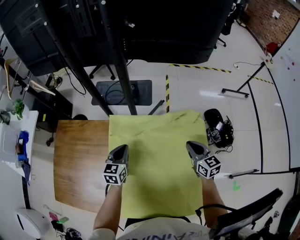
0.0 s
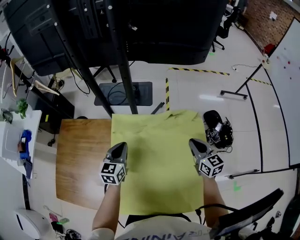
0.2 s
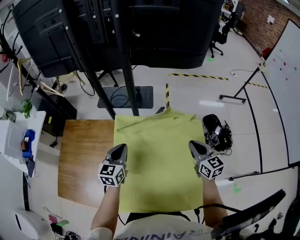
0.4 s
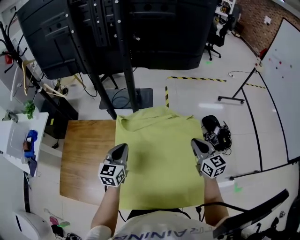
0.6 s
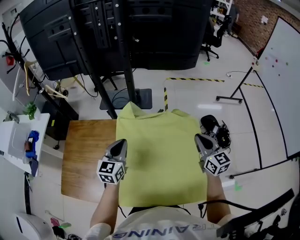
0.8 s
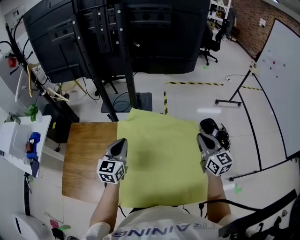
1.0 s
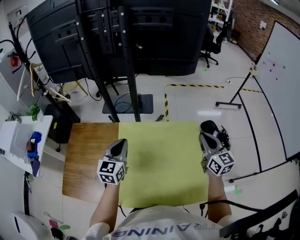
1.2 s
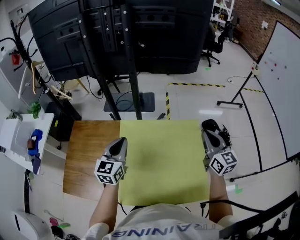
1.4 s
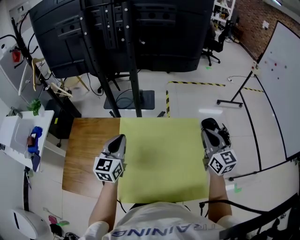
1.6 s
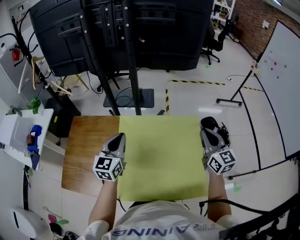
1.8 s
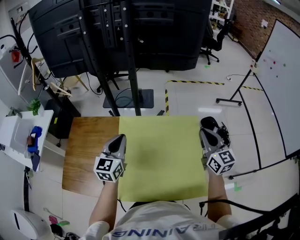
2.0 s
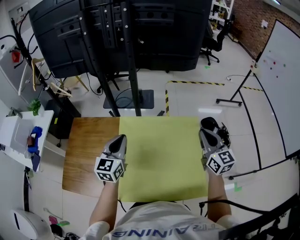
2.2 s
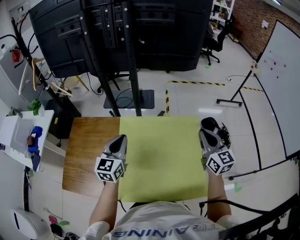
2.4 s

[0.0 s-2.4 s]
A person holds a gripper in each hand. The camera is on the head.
0.0 to 1.2 s: Both grippers move upward and backward, about 20 cm. The right gripper turns by about 20 degrees.
1.2 to 2.4 s: There are only small adjustments of the grippers.

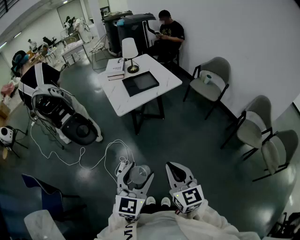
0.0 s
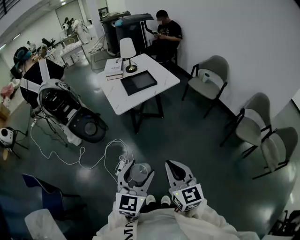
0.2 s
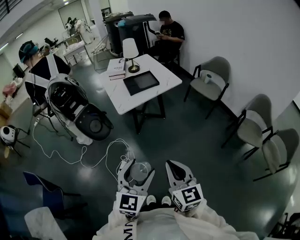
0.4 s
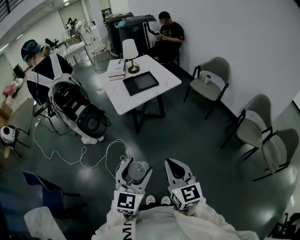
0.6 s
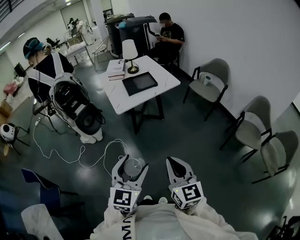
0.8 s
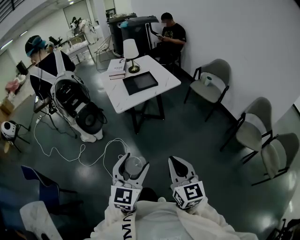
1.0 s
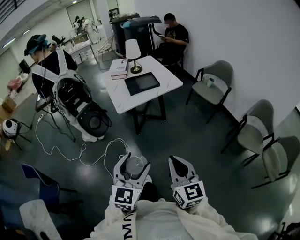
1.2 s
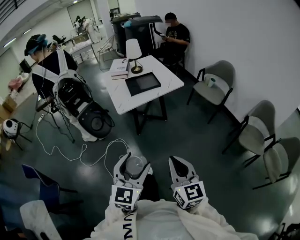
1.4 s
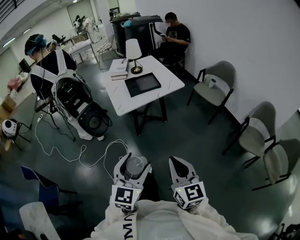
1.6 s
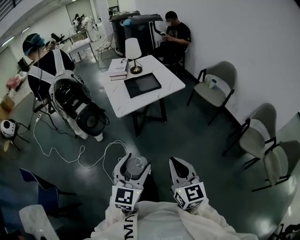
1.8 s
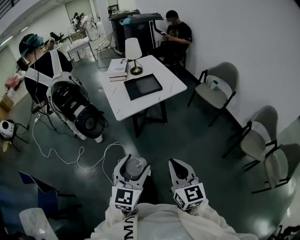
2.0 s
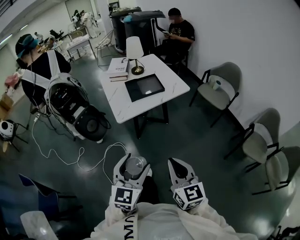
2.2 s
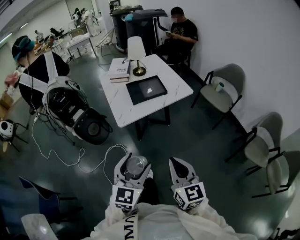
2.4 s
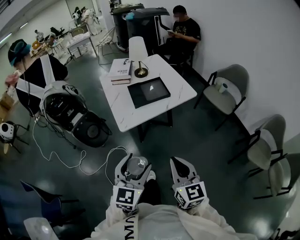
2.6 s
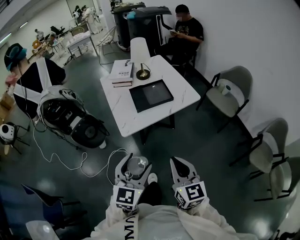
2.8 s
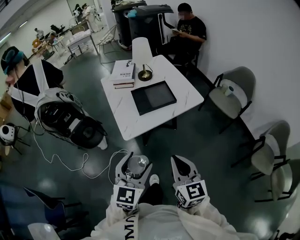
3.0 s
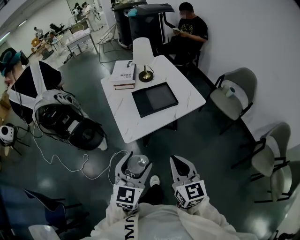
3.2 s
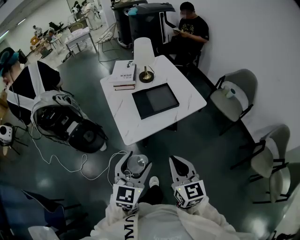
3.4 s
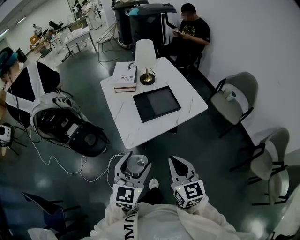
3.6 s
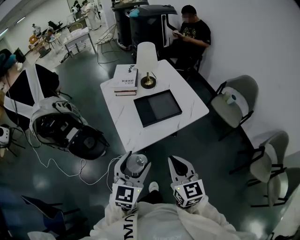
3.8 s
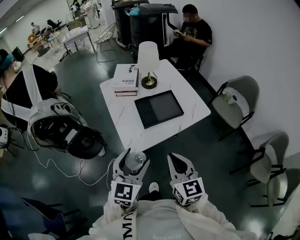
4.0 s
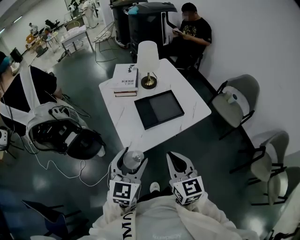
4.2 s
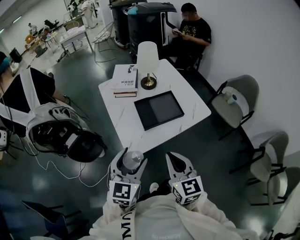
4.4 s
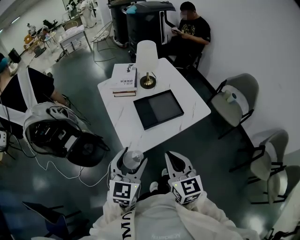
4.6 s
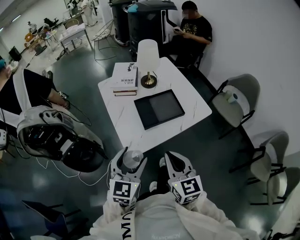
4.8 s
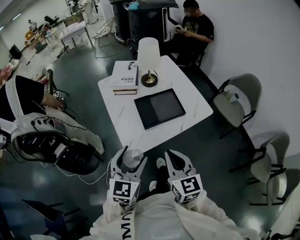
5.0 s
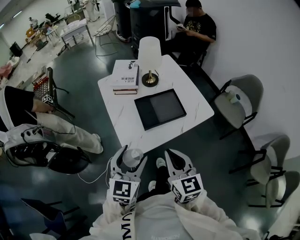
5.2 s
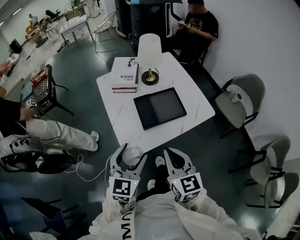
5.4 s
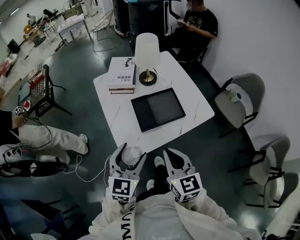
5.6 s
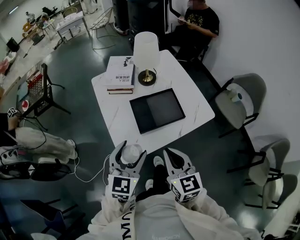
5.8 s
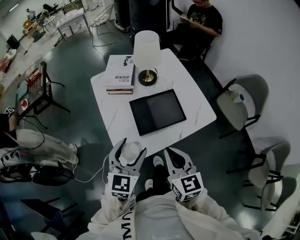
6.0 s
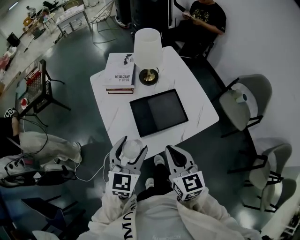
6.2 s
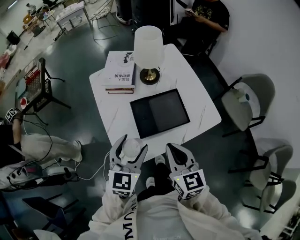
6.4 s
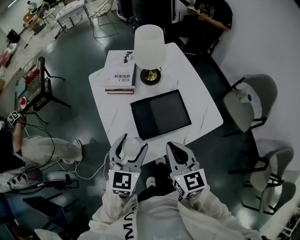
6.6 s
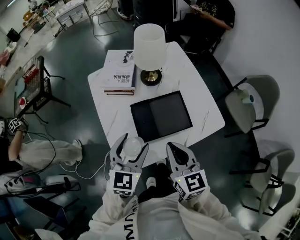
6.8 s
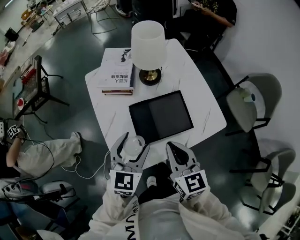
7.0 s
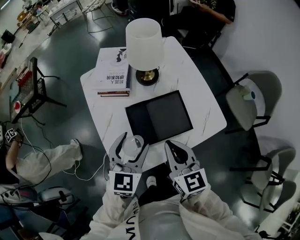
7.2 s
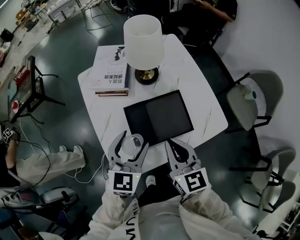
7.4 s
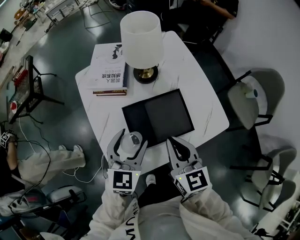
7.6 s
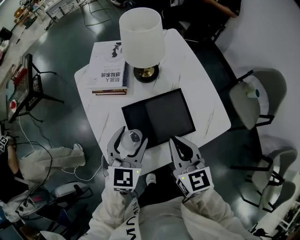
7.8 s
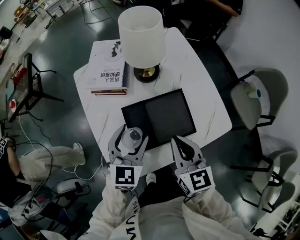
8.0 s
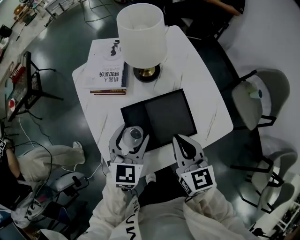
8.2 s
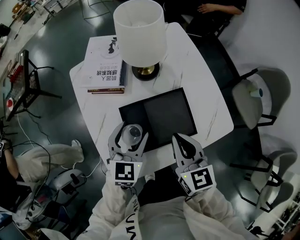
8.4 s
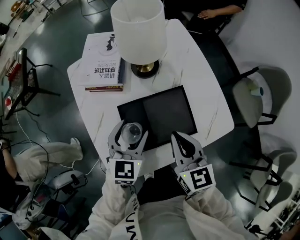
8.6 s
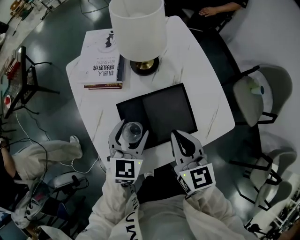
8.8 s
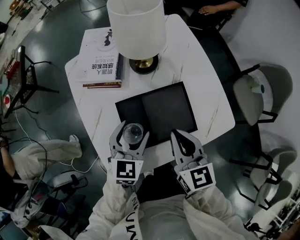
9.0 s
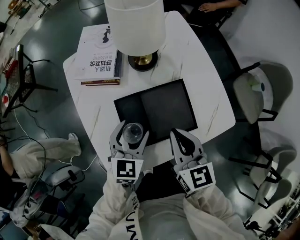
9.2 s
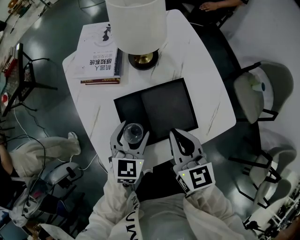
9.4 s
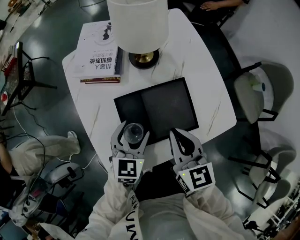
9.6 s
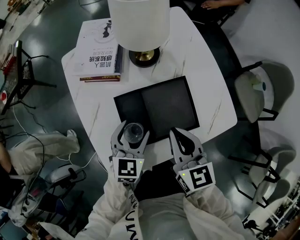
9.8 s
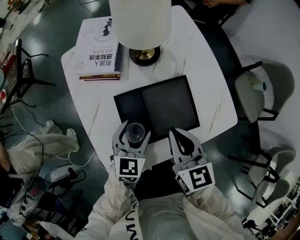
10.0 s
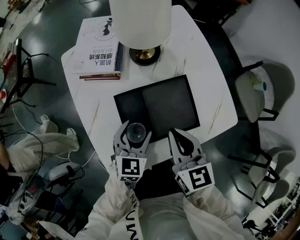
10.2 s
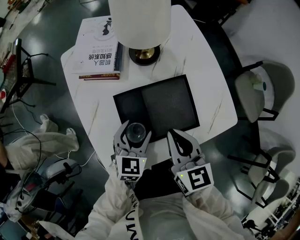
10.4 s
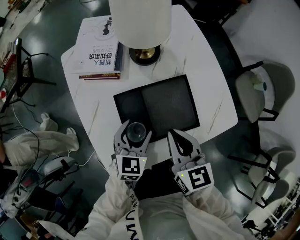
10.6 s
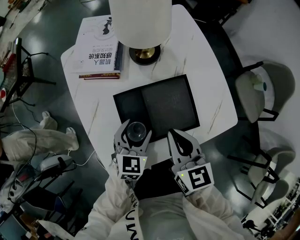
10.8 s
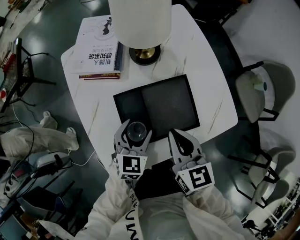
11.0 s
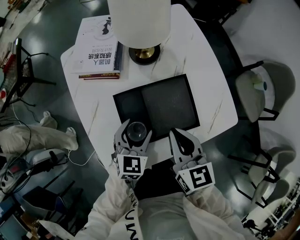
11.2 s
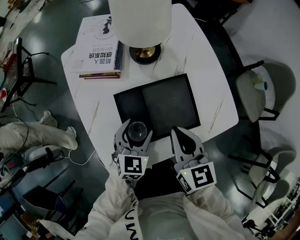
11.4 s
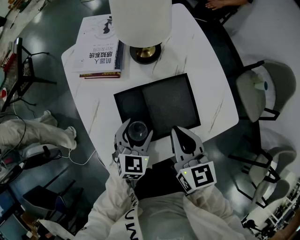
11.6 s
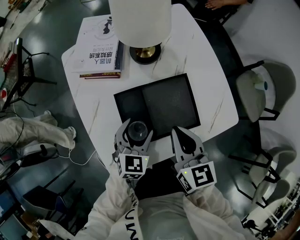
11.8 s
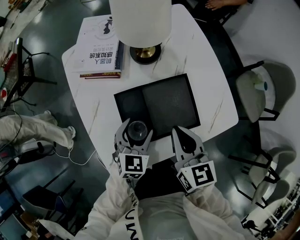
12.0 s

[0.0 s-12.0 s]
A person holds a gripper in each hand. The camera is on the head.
0.0 to 1.6 s: The right gripper heads to the right, covering roughly 5 cm.
1.6 to 3.0 s: The grippers both shift forward by approximately 30 cm.
3.0 to 4.4 s: Both grippers move forward and to the left, approximately 20 cm.
4.4 to 6.0 s: Both grippers travel together forward, some 10 cm.
6.0 to 7.6 s: The left gripper goes some 20 cm forward and downward; the right gripper moves forward, some 15 cm.
7.6 to 9.0 s: The right gripper ends up approximately 5 cm from where it was; the left gripper travels downward by some 10 cm.
9.0 to 10.4 s: The left gripper heads downward, covering roughly 5 cm.
10.4 to 12.0 s: The grippers make only small movements.

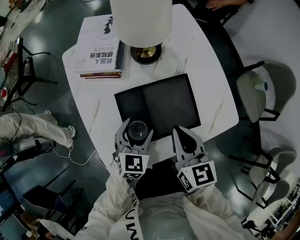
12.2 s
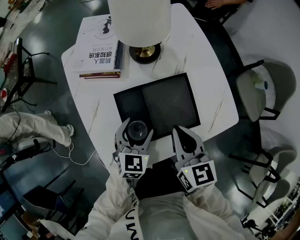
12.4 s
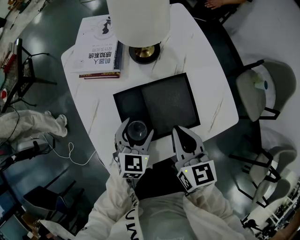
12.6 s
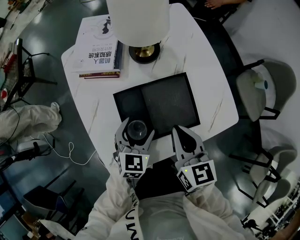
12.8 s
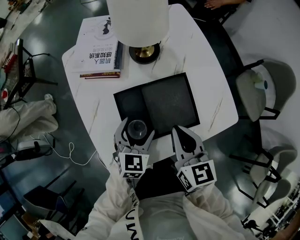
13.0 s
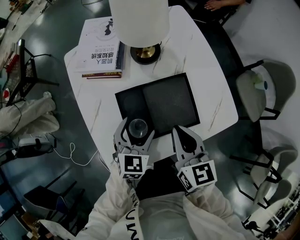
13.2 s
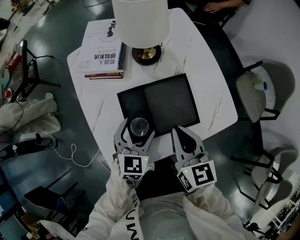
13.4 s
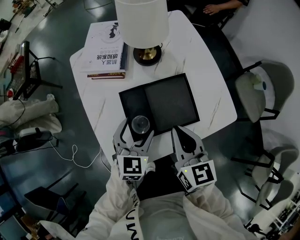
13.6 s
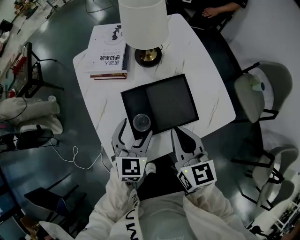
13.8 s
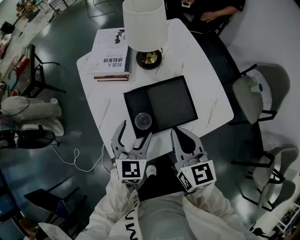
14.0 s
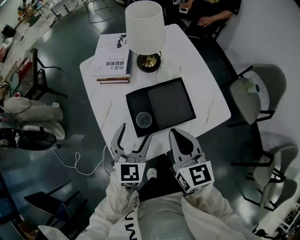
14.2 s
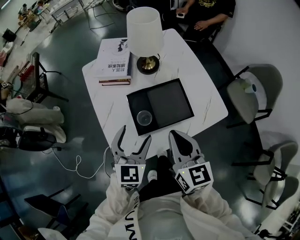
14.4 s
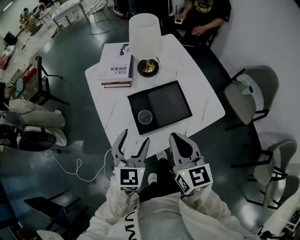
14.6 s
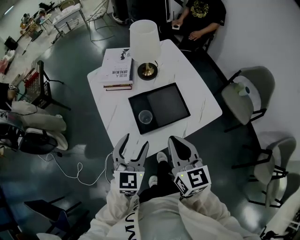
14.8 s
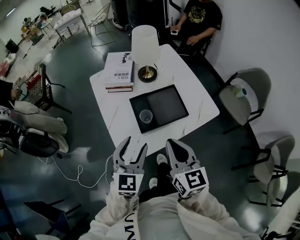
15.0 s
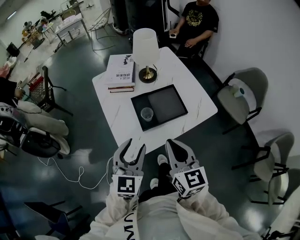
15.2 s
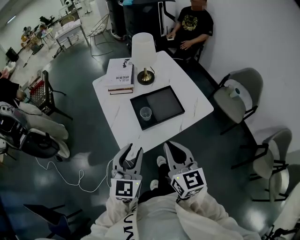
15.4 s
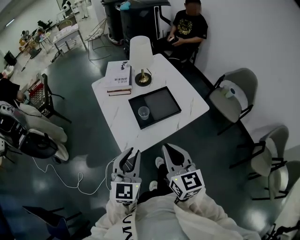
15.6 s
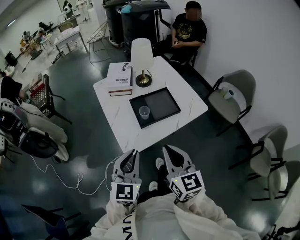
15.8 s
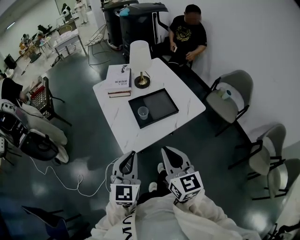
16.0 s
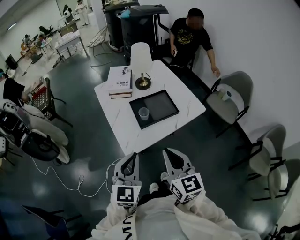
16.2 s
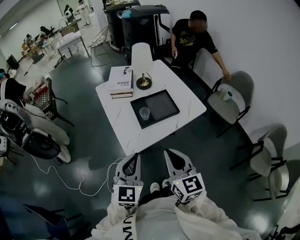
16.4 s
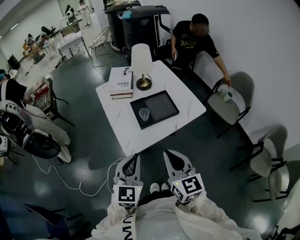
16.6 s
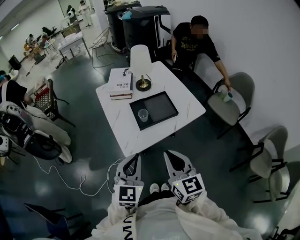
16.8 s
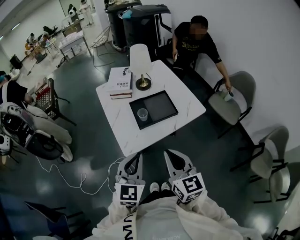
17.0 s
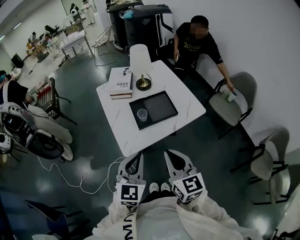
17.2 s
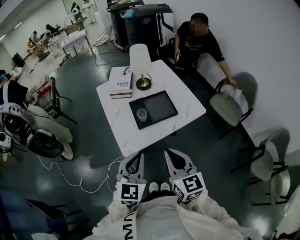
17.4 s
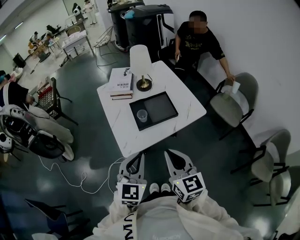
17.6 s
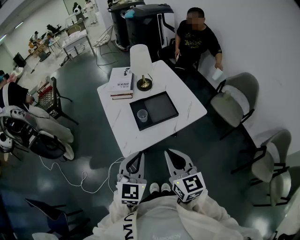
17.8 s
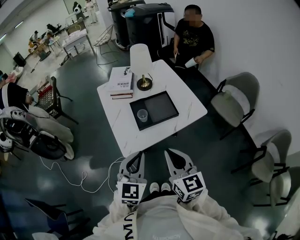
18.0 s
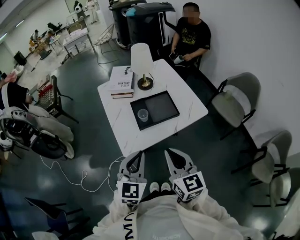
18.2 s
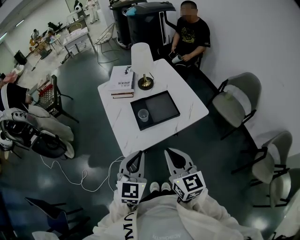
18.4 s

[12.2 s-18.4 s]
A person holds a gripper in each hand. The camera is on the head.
12.2 to 13.8 s: The right gripper shifts by roughly 5 cm; the left gripper heads upward, covering about 5 cm.
13.8 to 15.4 s: The grippers both shift backward and upward by approximately 25 cm. The left gripper swivels roughly 20 degrees, and closes.
15.4 to 16.8 s: Both grippers move backward, about 10 cm. The left gripper closes up.
16.8 to 18.4 s: There are only small adjustments of the grippers.

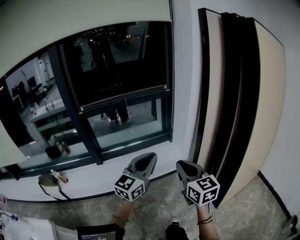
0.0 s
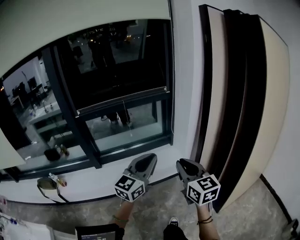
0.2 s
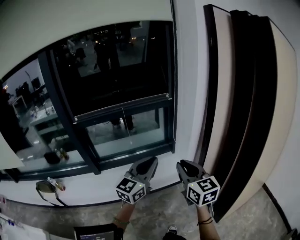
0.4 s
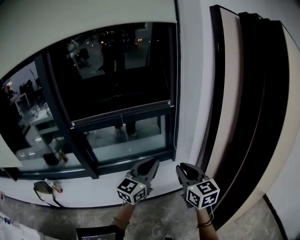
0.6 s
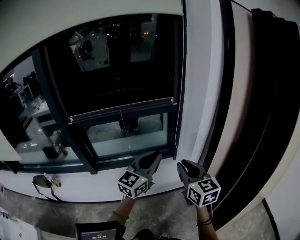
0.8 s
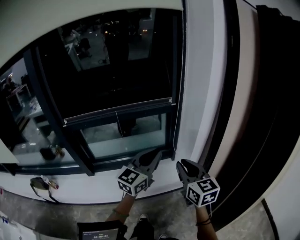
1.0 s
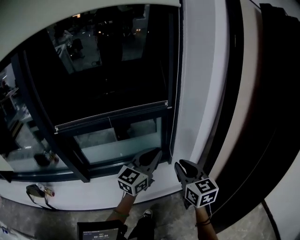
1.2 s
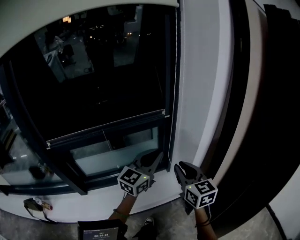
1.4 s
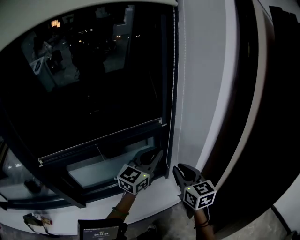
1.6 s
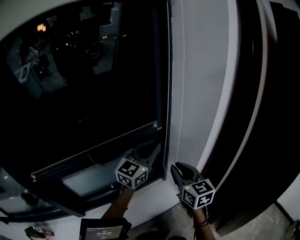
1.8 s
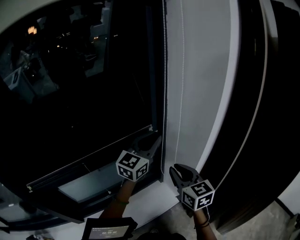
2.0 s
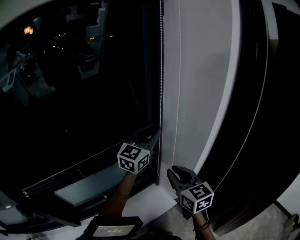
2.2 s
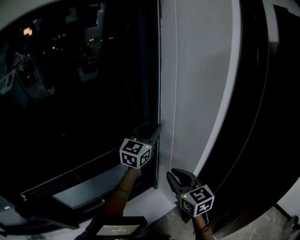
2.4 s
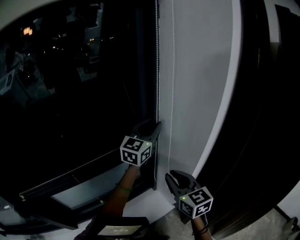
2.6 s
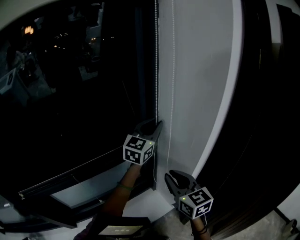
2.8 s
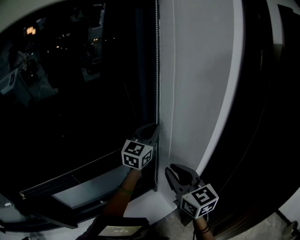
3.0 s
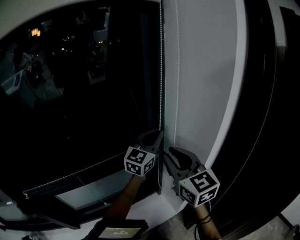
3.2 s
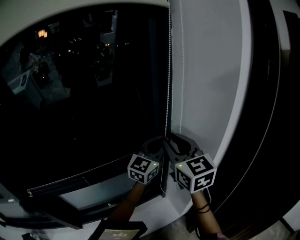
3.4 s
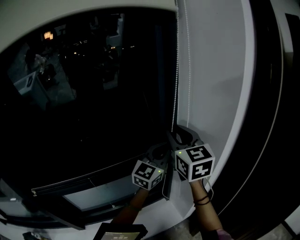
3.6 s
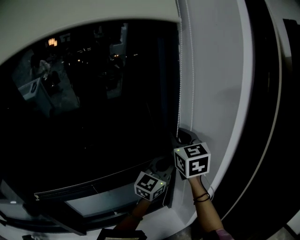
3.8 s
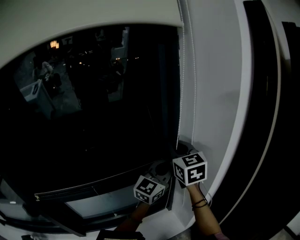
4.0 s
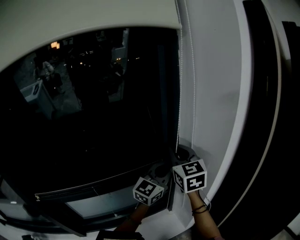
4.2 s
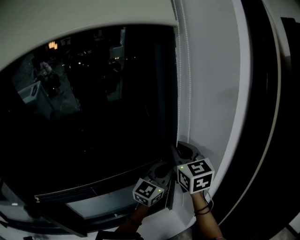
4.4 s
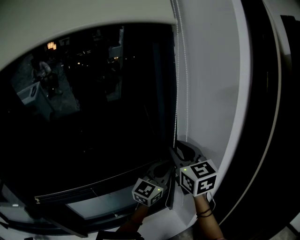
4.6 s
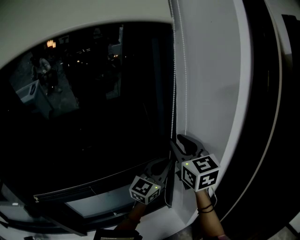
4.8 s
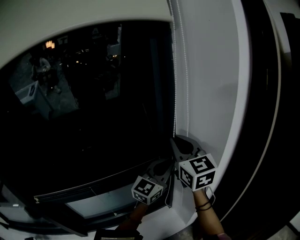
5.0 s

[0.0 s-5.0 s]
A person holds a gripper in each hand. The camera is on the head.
0.0 to 1.6 s: The two grippers travel together, forward, roughly 50 cm.
1.6 to 3.4 s: The right gripper goes about 25 cm upward and forward. Meanwhile the left gripper shifts about 20 cm forward.
